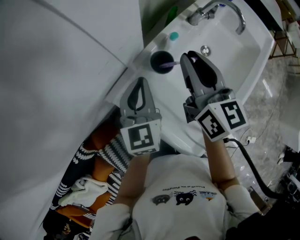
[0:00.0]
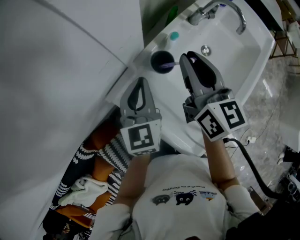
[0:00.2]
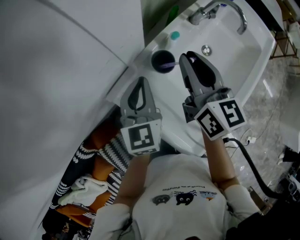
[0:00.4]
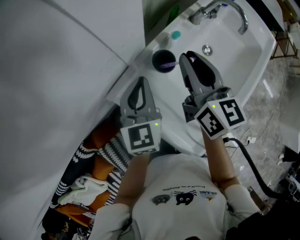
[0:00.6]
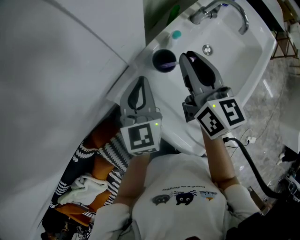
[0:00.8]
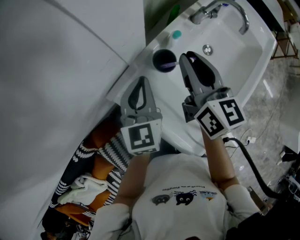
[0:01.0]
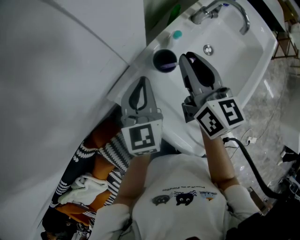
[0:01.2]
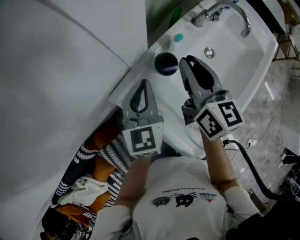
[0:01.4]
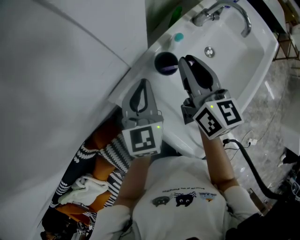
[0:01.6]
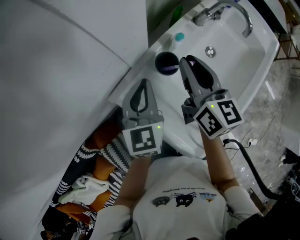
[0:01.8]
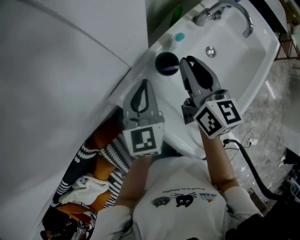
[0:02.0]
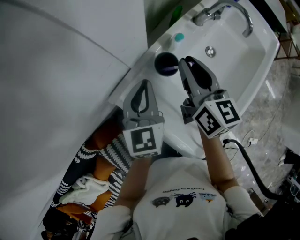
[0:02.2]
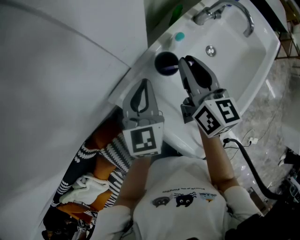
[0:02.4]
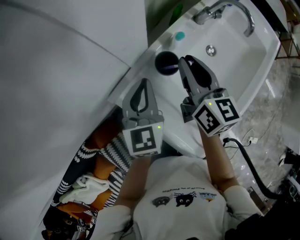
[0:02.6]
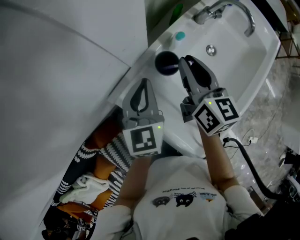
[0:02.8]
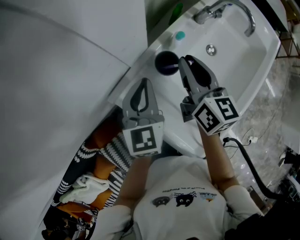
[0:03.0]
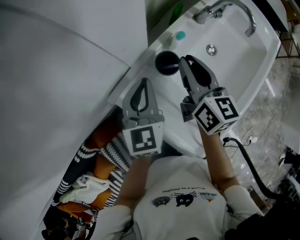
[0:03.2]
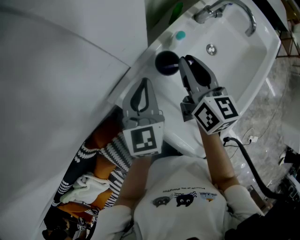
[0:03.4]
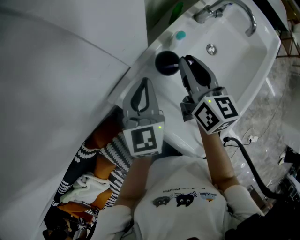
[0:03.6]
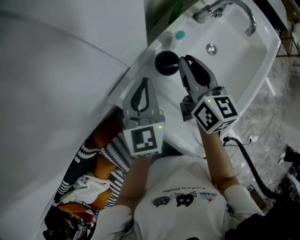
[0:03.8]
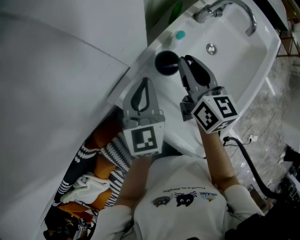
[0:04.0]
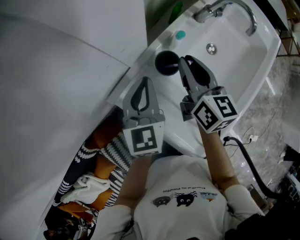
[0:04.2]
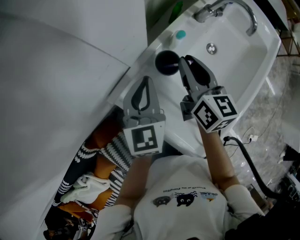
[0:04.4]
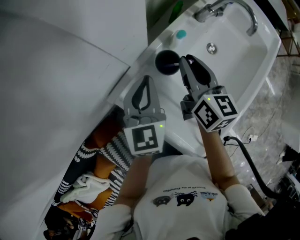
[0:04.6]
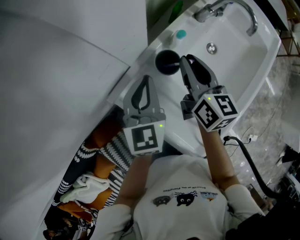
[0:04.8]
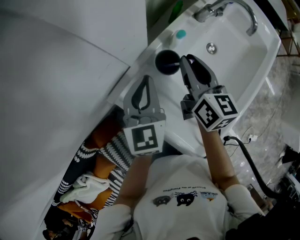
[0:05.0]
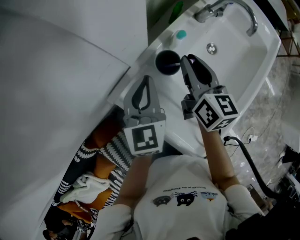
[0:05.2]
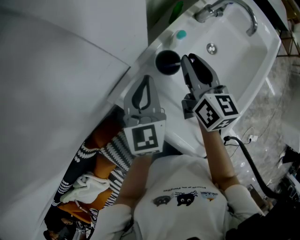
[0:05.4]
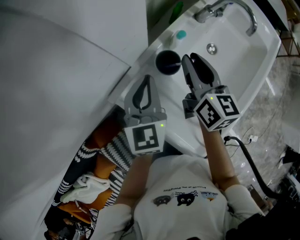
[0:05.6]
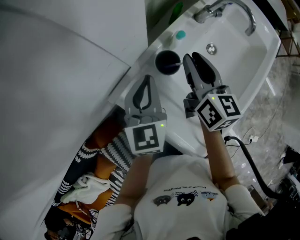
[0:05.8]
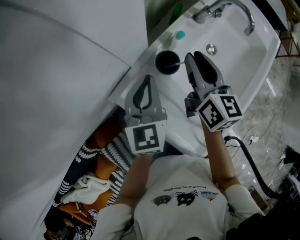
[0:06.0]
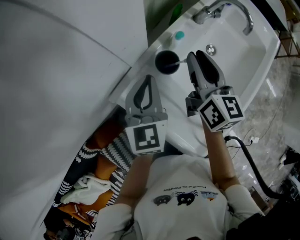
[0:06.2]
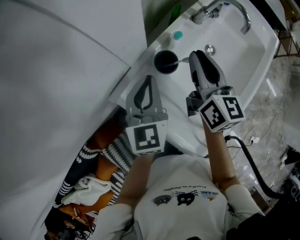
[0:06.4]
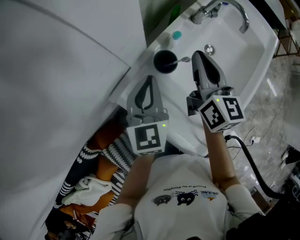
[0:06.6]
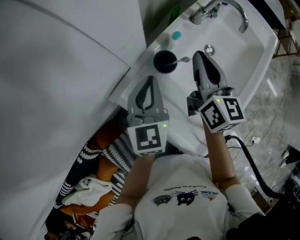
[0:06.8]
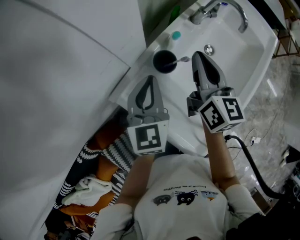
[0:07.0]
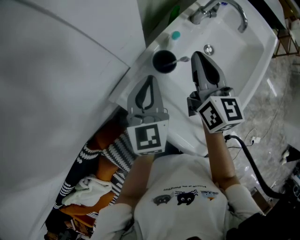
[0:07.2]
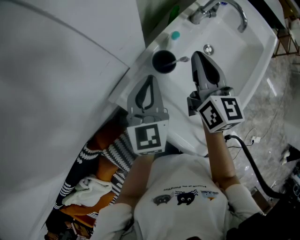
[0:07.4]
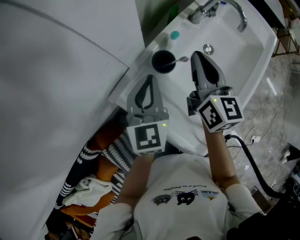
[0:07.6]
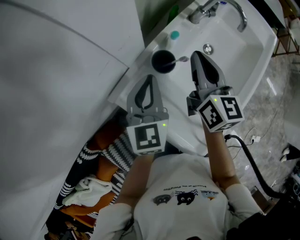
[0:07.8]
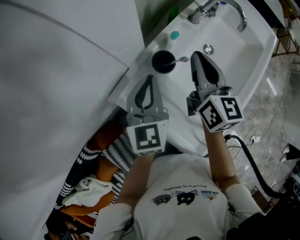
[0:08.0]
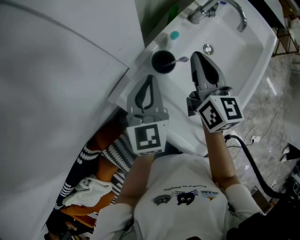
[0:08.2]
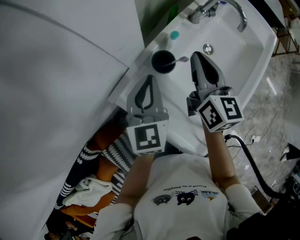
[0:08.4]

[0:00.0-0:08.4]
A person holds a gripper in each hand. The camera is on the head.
0.0 to 1.4 s: The grippers stay close to where they were, moving slightly.
1.4 to 4.2 s: The grippers move only a little.
4.2 to 5.6 s: Both grippers stay put.
5.6 to 7.0 s: The right gripper shifts by about 5 cm, and closes up.
7.0 to 8.4 s: Both grippers stay about where they are.

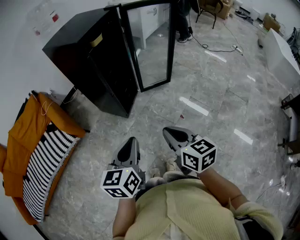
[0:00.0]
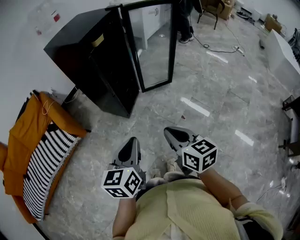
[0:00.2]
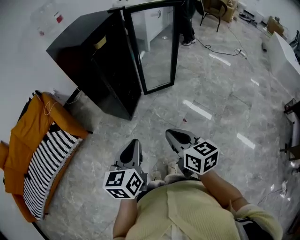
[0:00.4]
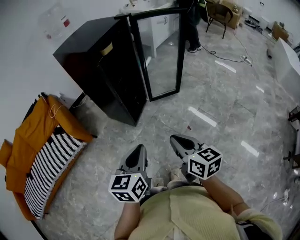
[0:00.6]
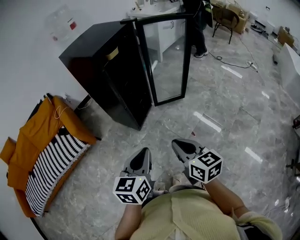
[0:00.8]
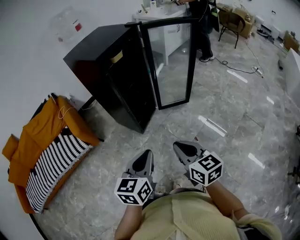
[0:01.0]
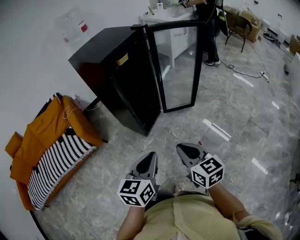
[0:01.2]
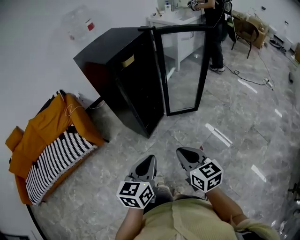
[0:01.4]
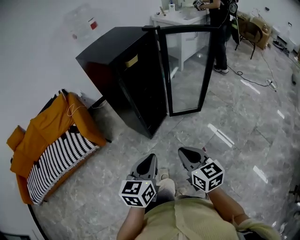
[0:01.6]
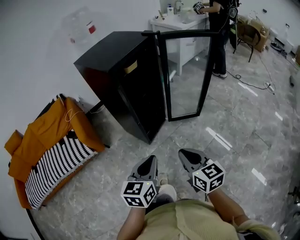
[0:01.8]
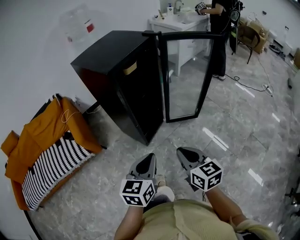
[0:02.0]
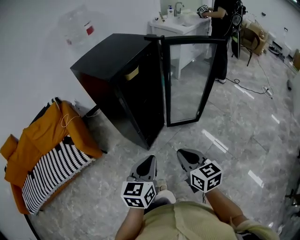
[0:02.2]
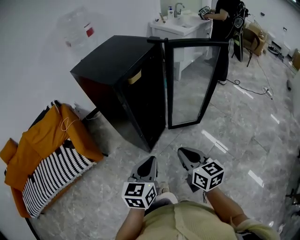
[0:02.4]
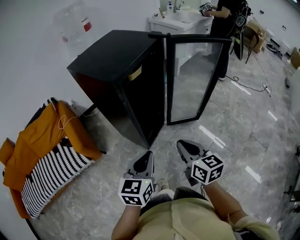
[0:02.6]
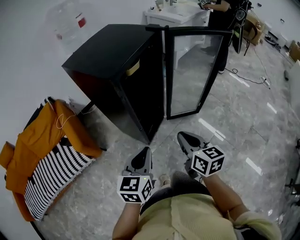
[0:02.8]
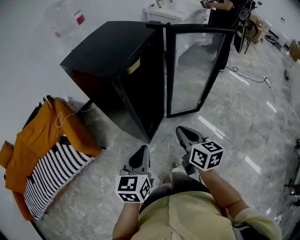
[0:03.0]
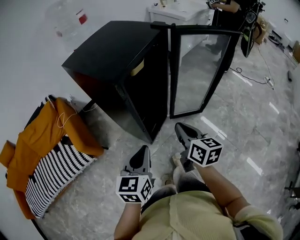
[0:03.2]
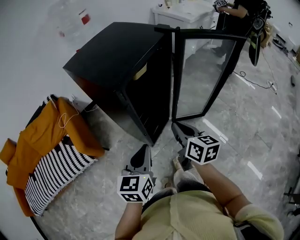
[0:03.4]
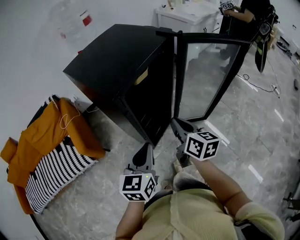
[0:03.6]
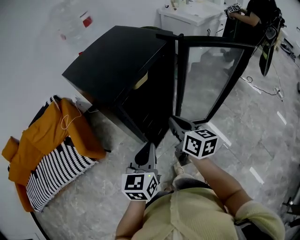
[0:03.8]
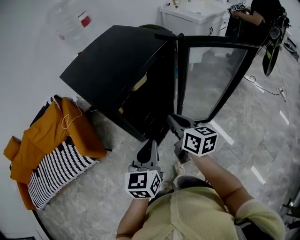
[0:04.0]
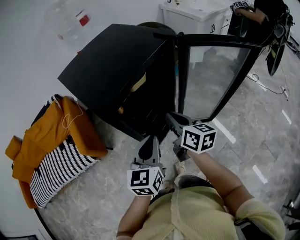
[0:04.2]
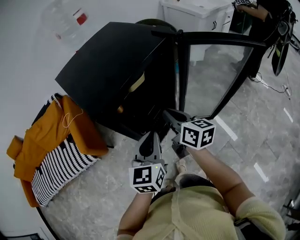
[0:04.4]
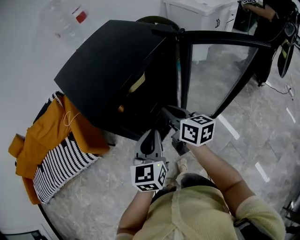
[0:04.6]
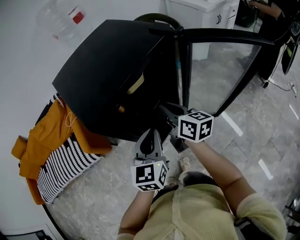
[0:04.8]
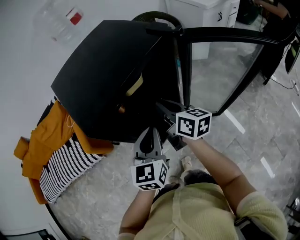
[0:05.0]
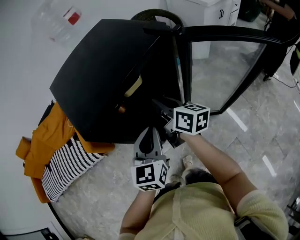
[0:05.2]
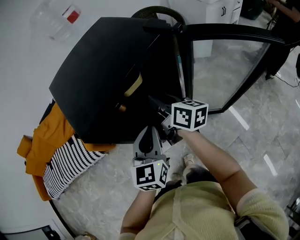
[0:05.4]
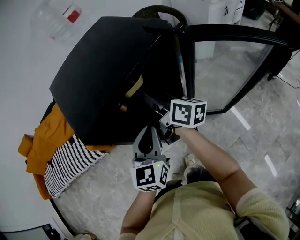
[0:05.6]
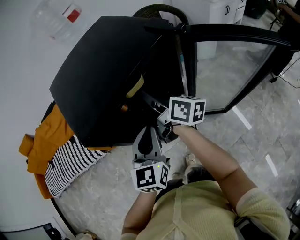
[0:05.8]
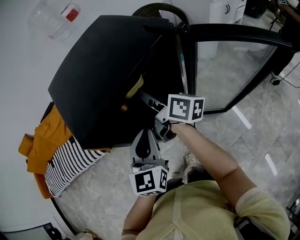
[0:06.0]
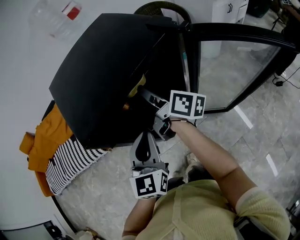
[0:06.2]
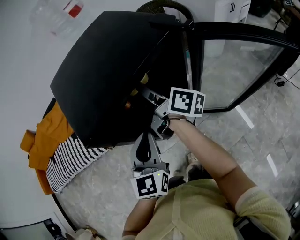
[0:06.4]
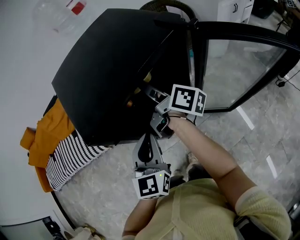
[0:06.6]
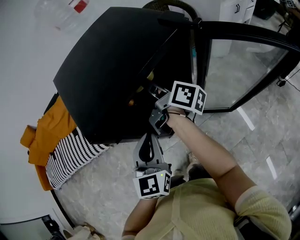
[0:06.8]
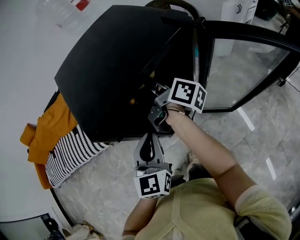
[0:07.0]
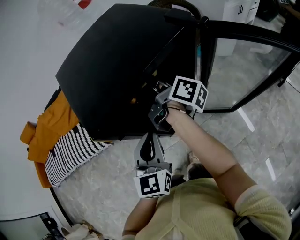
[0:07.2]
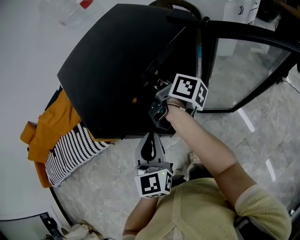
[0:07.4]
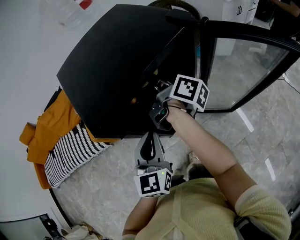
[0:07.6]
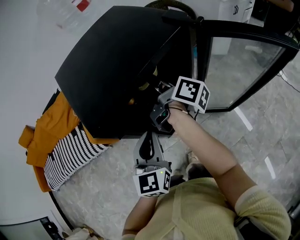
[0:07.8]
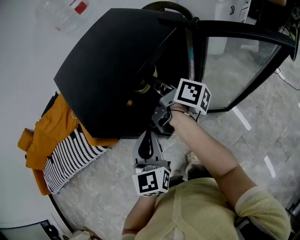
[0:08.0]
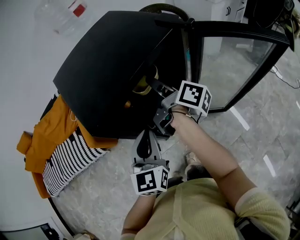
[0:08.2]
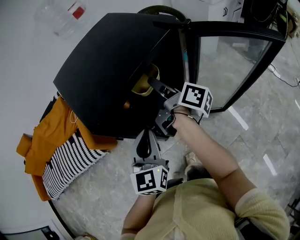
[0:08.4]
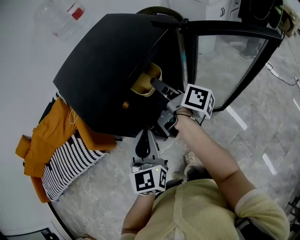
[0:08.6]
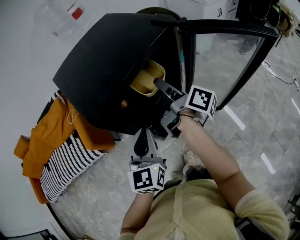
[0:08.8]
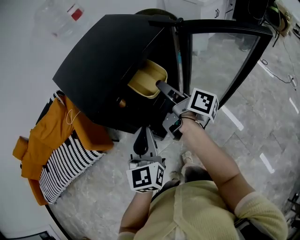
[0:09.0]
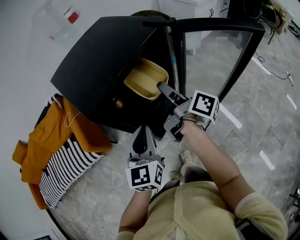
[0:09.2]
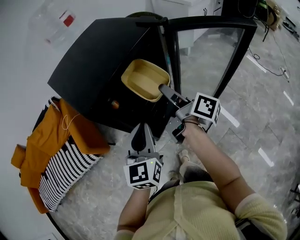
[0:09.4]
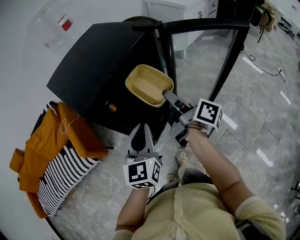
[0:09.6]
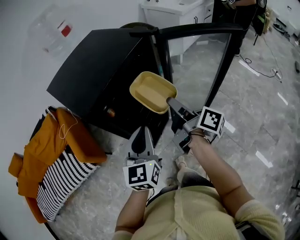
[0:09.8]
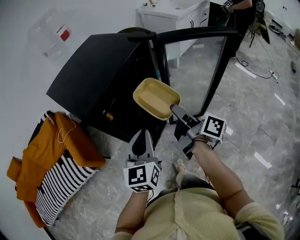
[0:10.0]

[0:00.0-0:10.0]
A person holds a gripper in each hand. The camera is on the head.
0.0 to 1.4 s: The grippers both shift forward by approximately 5 cm.
1.4 to 2.8 s: Both grippers travel together forward, roughly 20 cm.
2.8 to 4.2 s: The grippers both shift forward by roughly 20 cm.
4.2 to 5.8 s: The left gripper goes some 10 cm forward. Meanwhile the right gripper is displaced forward by about 15 cm, turns by some 30 degrees, and opens its fingers.
5.8 to 7.2 s: The left gripper shifts by roughly 5 cm; the right gripper turns by roughly 20 degrees, and opens.
7.2 to 8.6 s: The left gripper ends up roughly 5 cm from where it was.
8.6 to 10.0 s: The right gripper shifts about 20 cm backward and to the right, while the left gripper is displaced backward and to the right by some 10 cm.

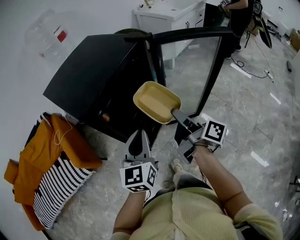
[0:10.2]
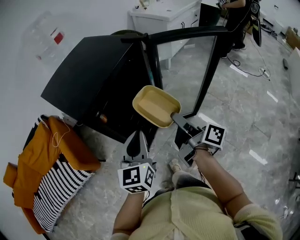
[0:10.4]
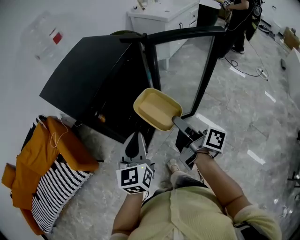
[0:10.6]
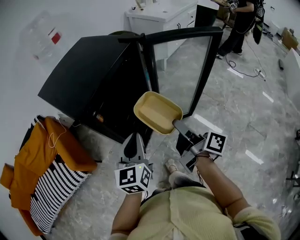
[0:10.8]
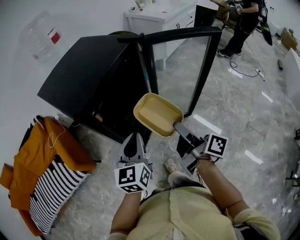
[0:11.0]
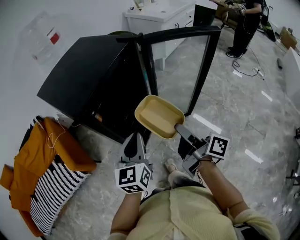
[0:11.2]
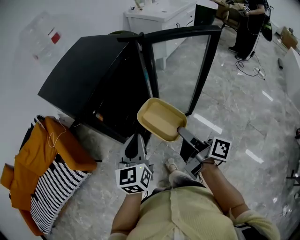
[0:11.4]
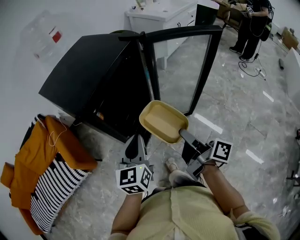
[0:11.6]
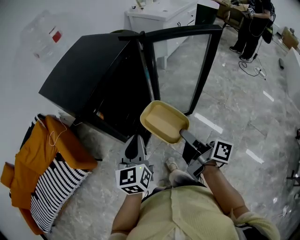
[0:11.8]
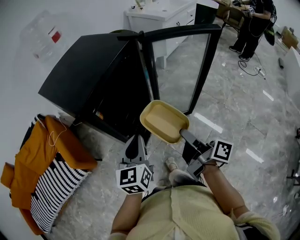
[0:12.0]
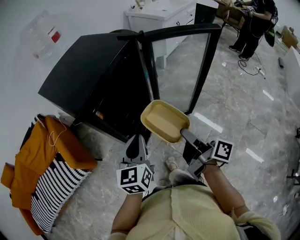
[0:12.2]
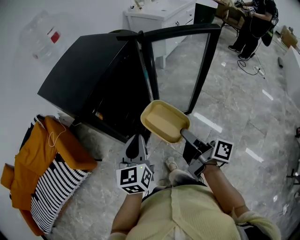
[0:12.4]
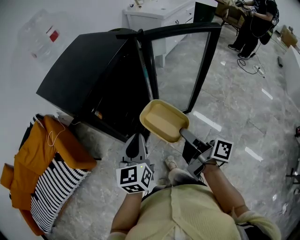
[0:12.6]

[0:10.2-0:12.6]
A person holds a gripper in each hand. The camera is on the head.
10.2 to 11.4 s: The right gripper goes approximately 10 cm backward.
11.4 to 12.6 s: The grippers make only small movements.

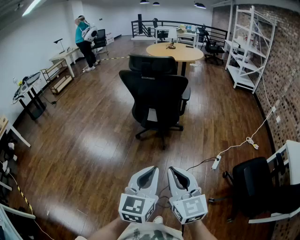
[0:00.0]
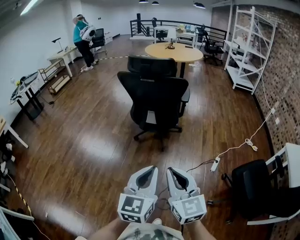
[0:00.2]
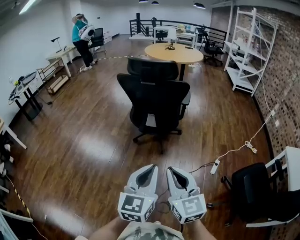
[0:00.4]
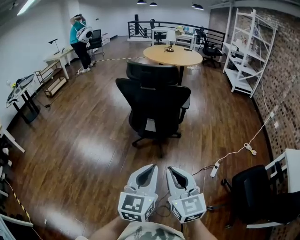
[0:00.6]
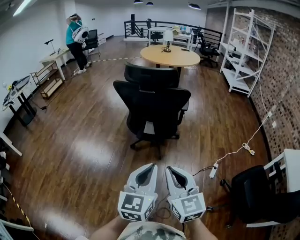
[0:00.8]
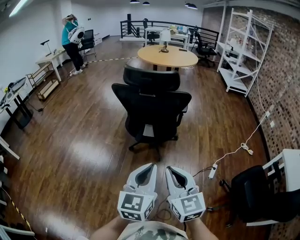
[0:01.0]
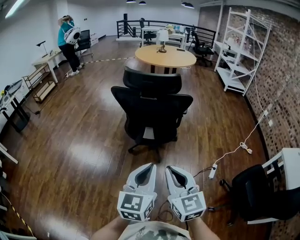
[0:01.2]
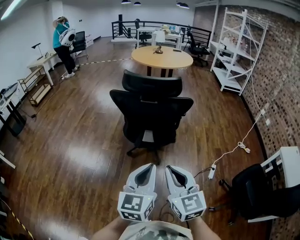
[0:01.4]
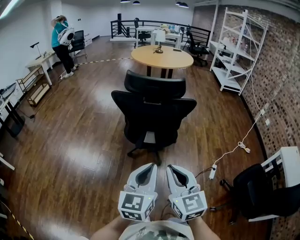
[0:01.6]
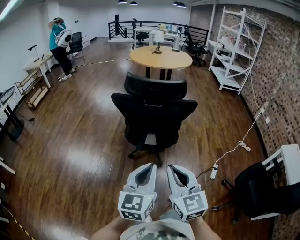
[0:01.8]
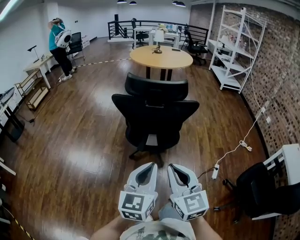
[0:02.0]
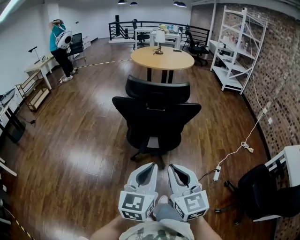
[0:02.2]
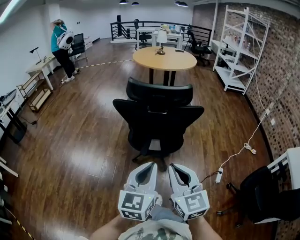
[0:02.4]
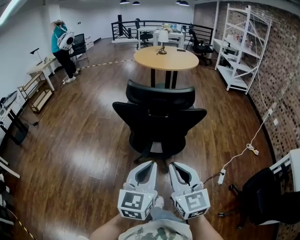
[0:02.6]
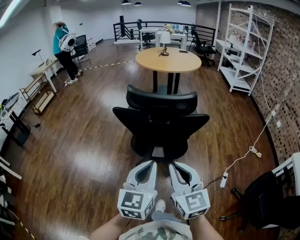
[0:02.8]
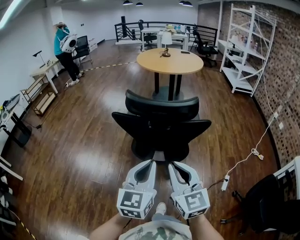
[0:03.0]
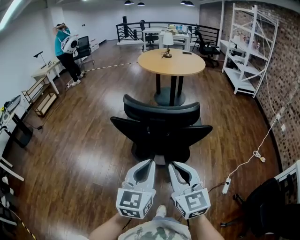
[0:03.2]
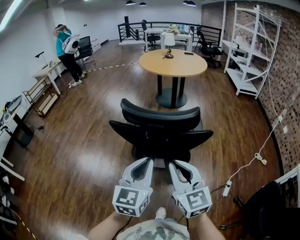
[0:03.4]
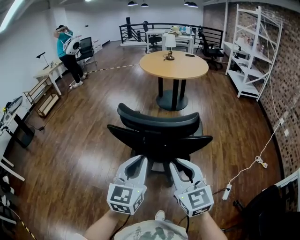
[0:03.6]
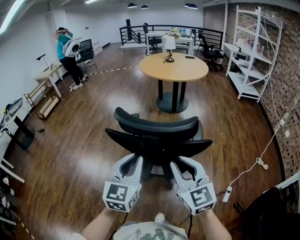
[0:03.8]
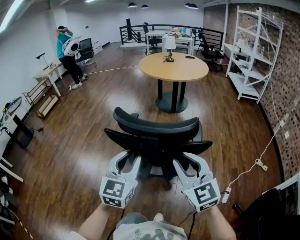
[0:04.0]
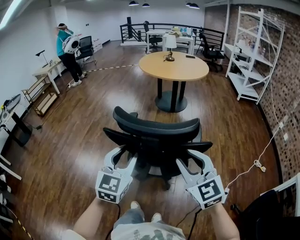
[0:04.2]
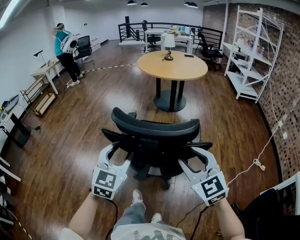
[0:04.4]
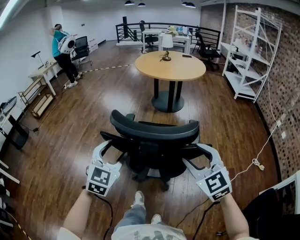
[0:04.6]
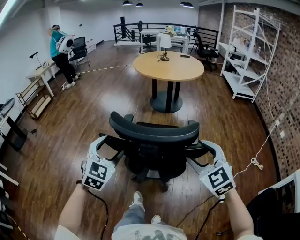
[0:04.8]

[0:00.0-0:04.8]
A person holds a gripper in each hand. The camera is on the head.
0.0 to 1.6 s: The grippers both shift forward and to the left by approximately 25 cm.
1.6 to 3.2 s: The two grippers go about 20 cm forward.
3.2 to 4.8 s: The left gripper moves forward and to the left, some 20 cm, changes its angle by some 40 degrees, and opens its fingers; the right gripper goes approximately 20 cm forward and to the right, turns by roughly 30 degrees, and opens.
